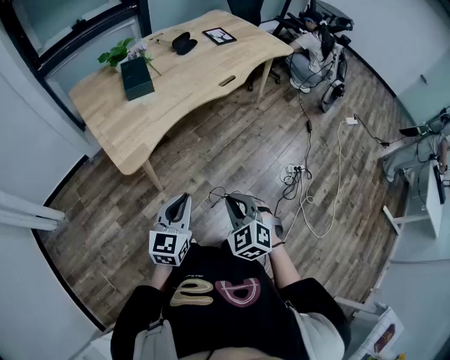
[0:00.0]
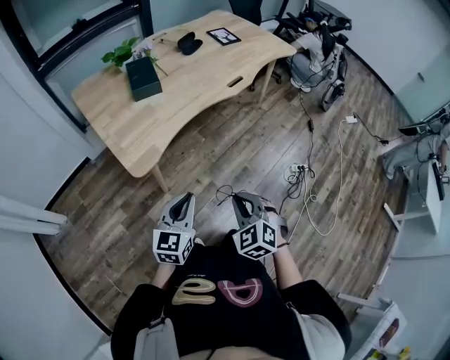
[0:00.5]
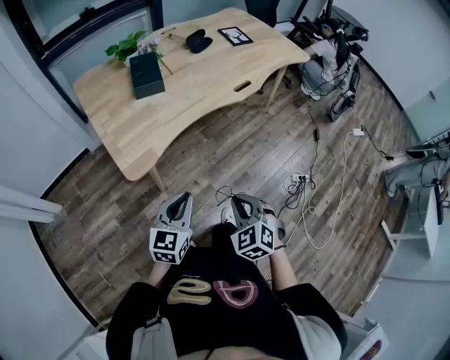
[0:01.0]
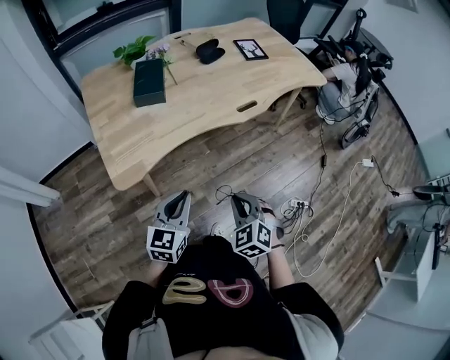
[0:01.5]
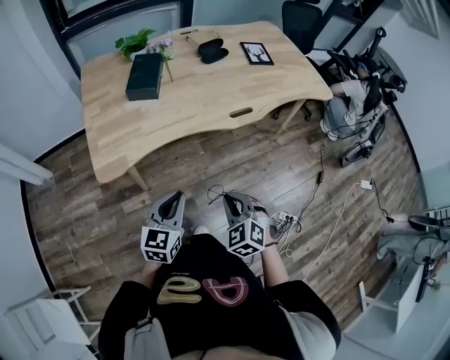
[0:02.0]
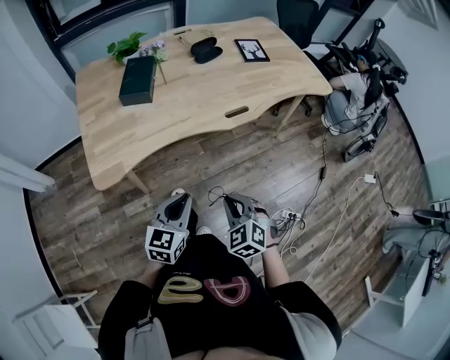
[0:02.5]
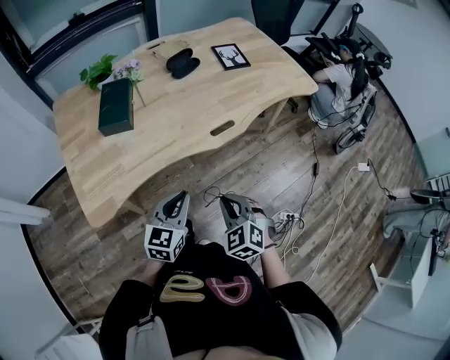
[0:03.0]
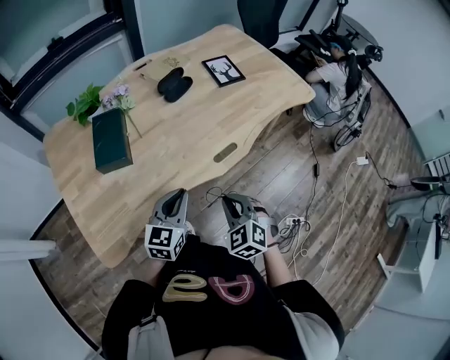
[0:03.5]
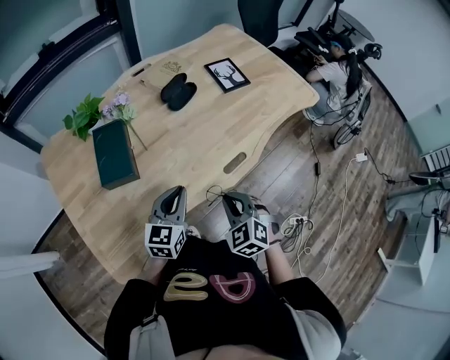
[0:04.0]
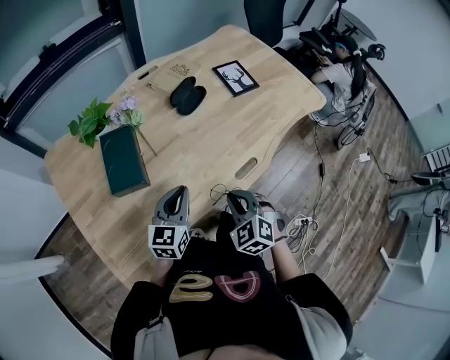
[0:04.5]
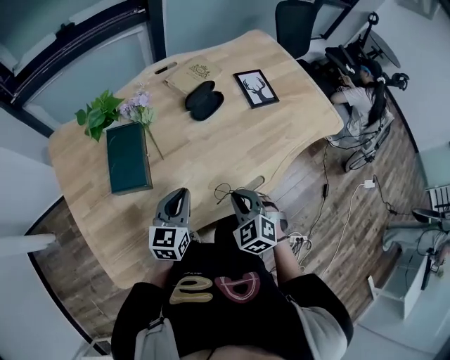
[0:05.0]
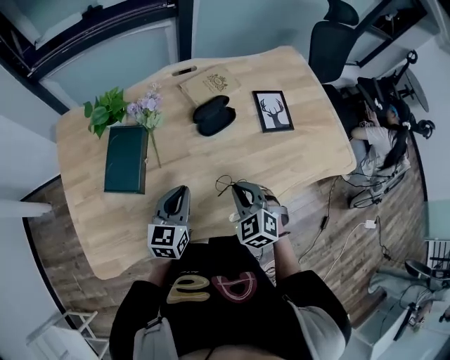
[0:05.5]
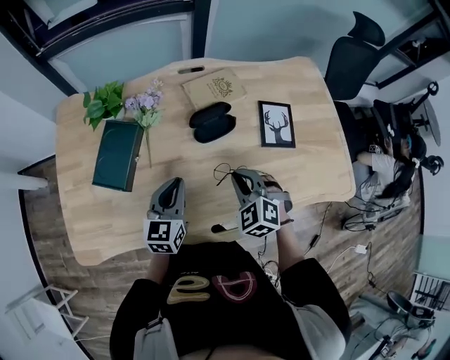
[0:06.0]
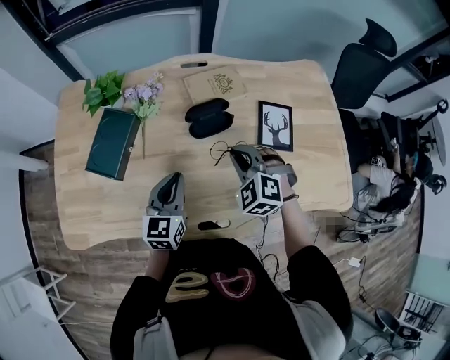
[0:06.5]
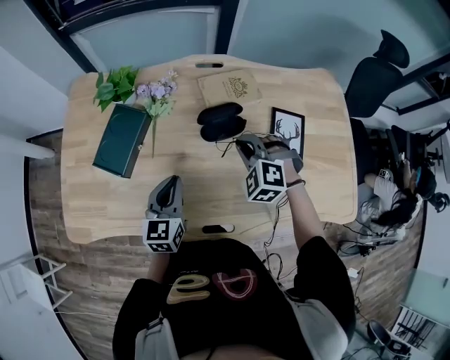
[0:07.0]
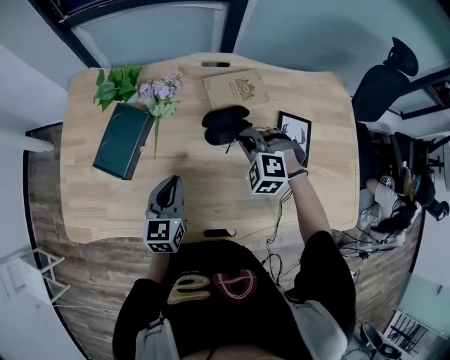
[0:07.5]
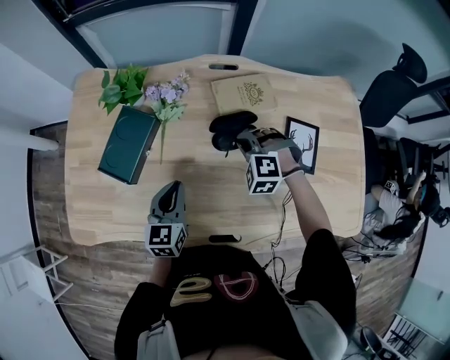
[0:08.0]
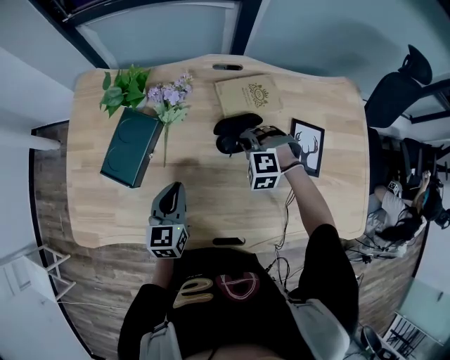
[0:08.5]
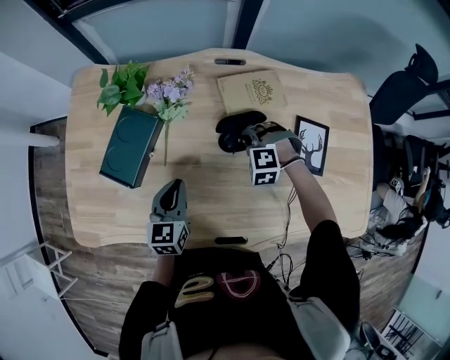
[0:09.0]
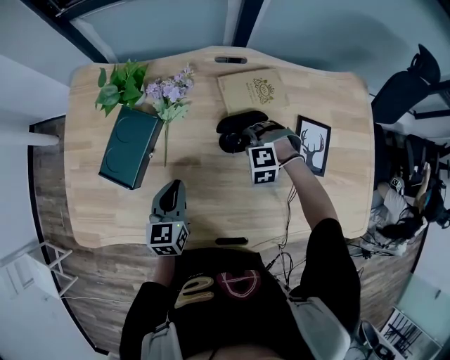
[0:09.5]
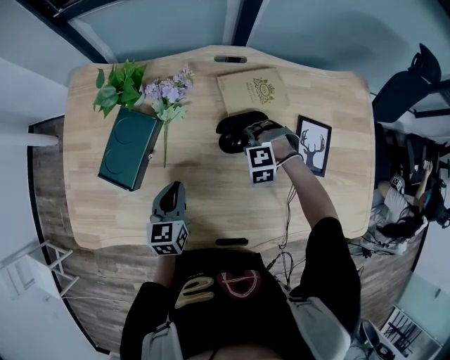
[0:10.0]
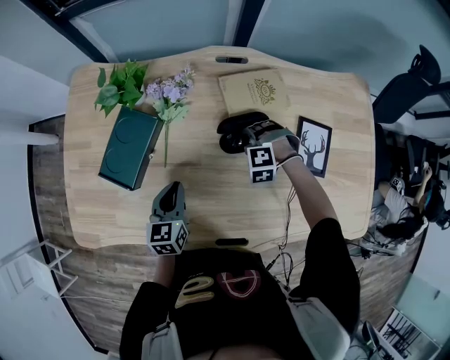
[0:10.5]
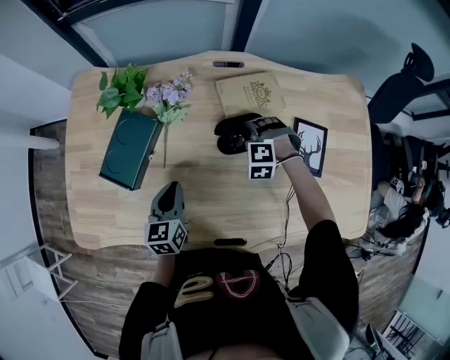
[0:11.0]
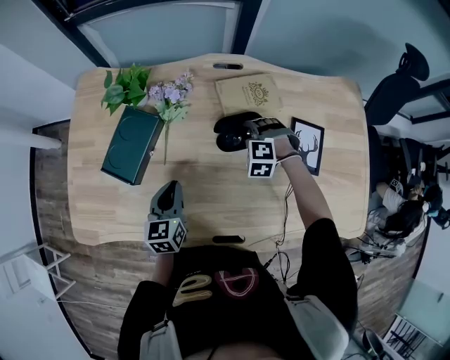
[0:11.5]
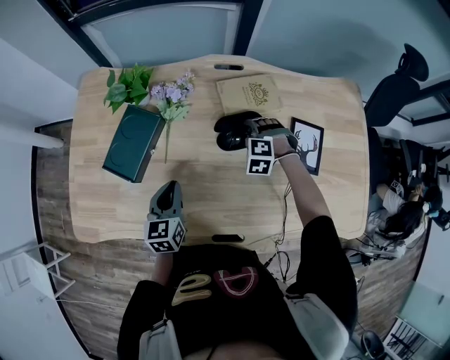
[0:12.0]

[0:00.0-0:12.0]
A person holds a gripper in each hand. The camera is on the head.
0:00.0 to 0:02.0: The two grippers go some 25 cm forward and to the right. The left gripper changes its angle by approximately 20 degrees.
0:02.0 to 0:04.0: The grippers both shift forward by roughly 30 cm.
0:04.0 to 0:06.0: The right gripper changes place by roughly 30 cm, and swivels roughly 30 degrees. The left gripper shifts by some 20 cm, and changes its angle by roughly 30 degrees.
0:06.0 to 0:08.0: The right gripper moves forward, roughly 15 cm, and swivels roughly 40 degrees.
0:08.0 to 0:10.0: The right gripper heads downward, covering about 10 cm. Meanwhile the left gripper moves downward, some 5 cm.
0:10.0 to 0:12.0: The right gripper opens.

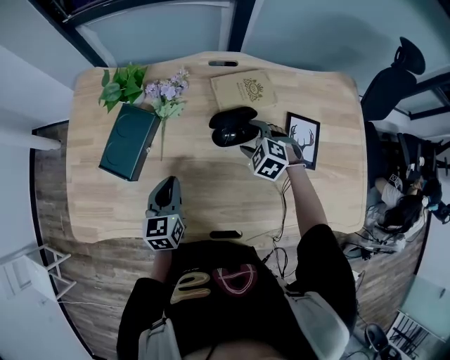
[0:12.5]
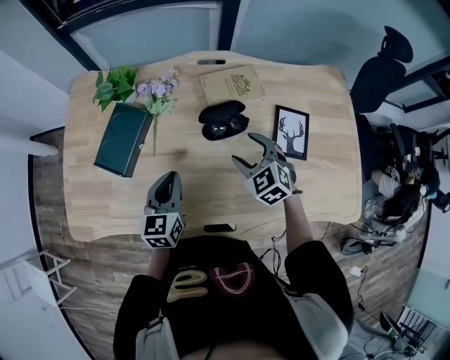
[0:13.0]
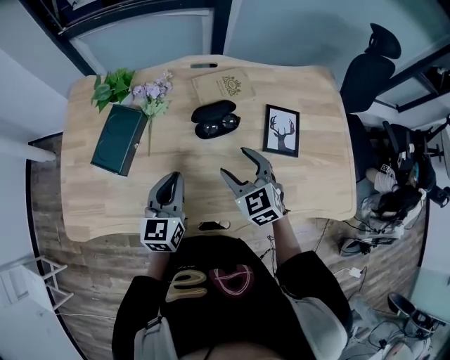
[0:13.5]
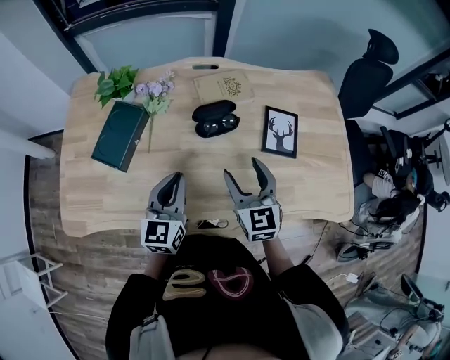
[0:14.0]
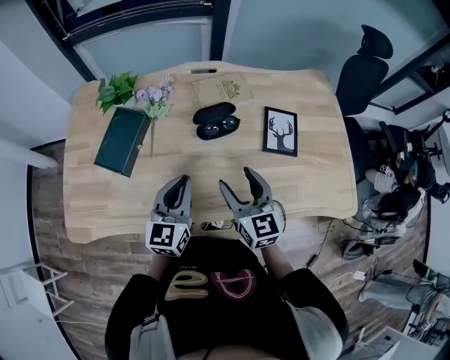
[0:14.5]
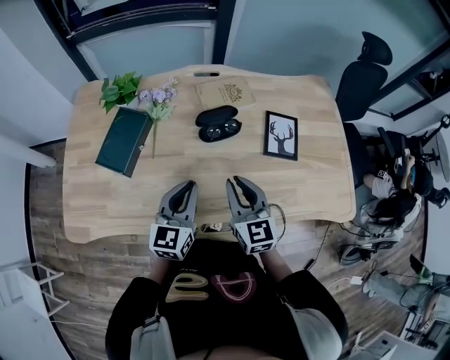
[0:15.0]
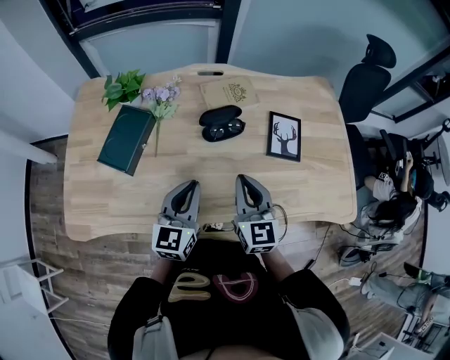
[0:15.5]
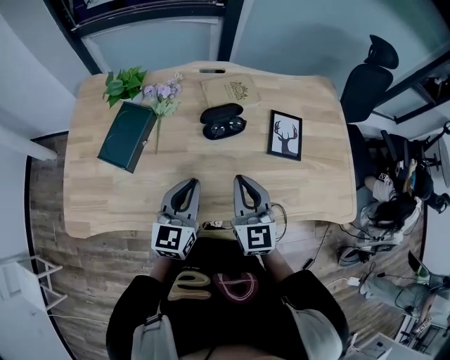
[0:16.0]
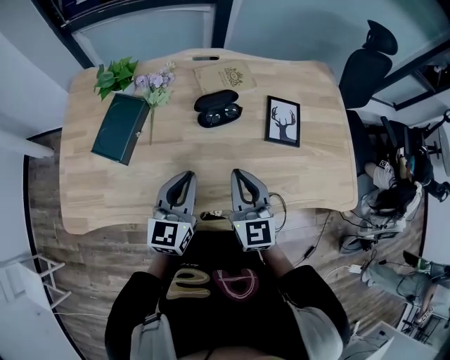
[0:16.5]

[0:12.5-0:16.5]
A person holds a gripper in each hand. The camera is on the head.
0:12.5 to 0:14.5: The left gripper travels upward, to the right and backward by about 15 cm, and turns by approximately 20 degrees. The right gripper heads backward and upward, covering roughly 25 cm, and points its fingers about 40 degrees further upward.
0:14.5 to 0:16.5: The right gripper closes up.

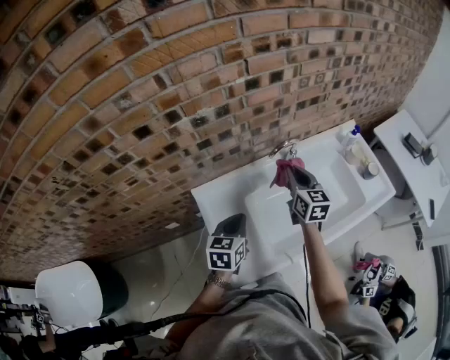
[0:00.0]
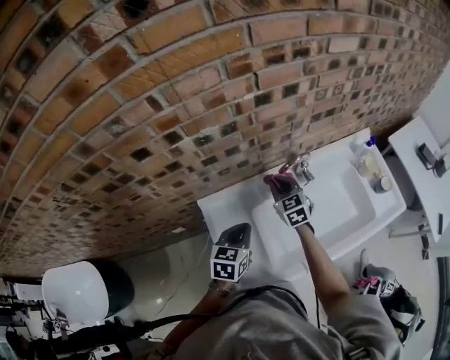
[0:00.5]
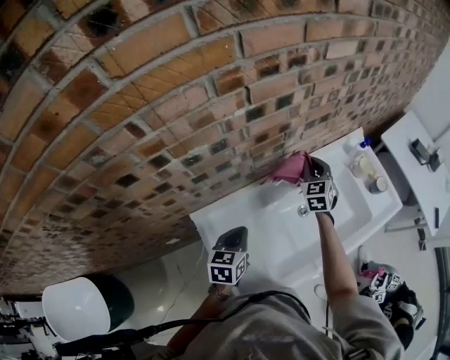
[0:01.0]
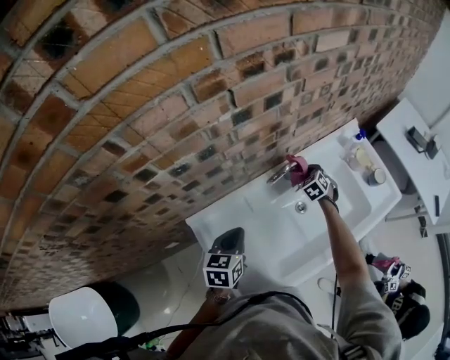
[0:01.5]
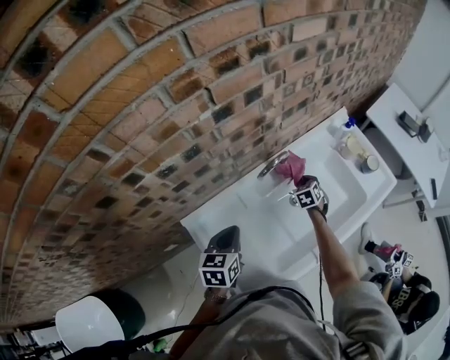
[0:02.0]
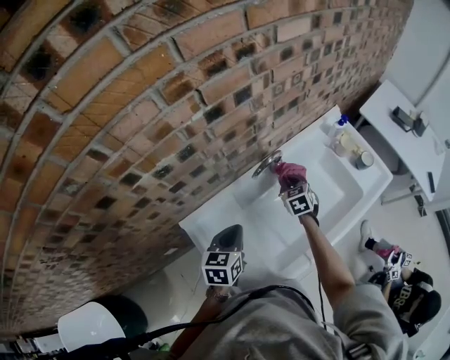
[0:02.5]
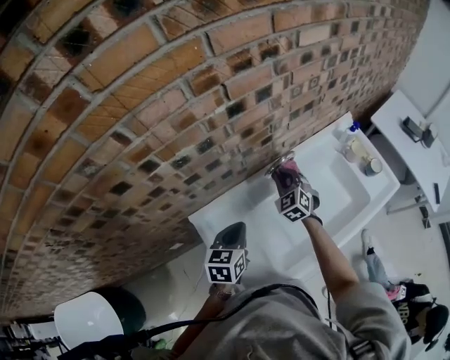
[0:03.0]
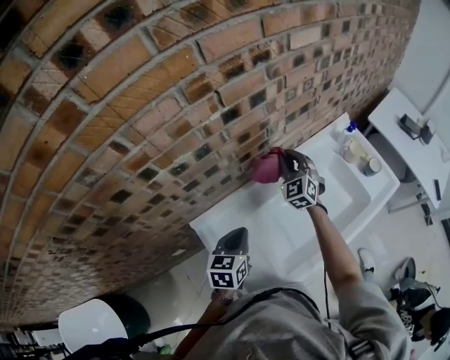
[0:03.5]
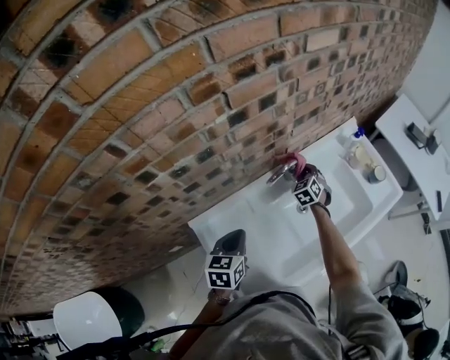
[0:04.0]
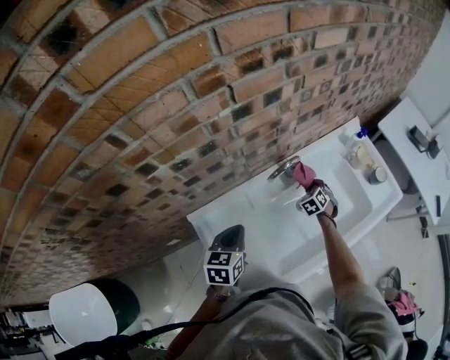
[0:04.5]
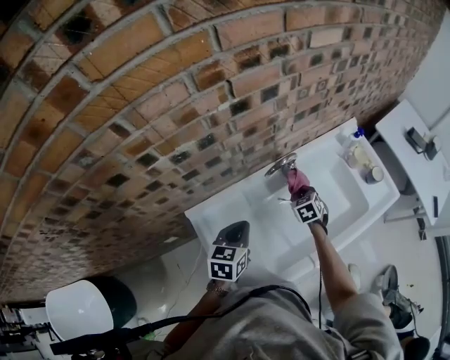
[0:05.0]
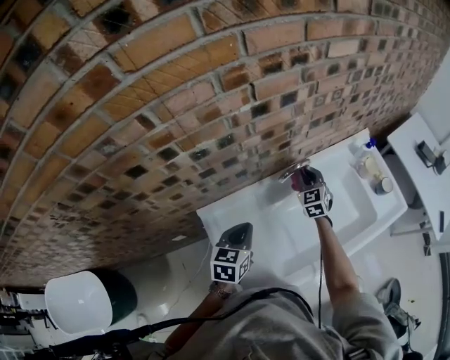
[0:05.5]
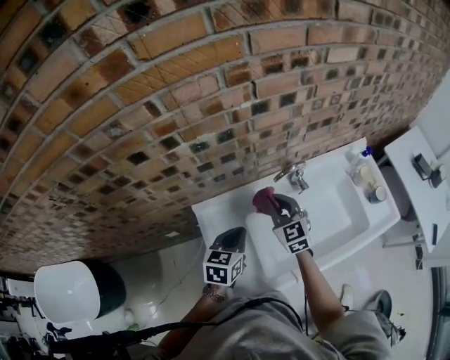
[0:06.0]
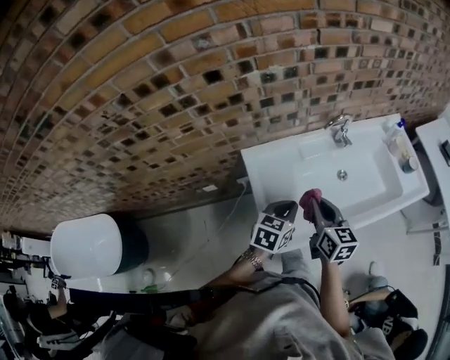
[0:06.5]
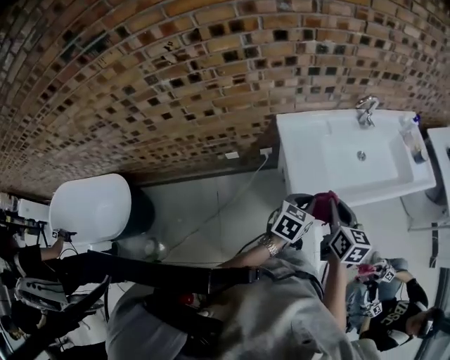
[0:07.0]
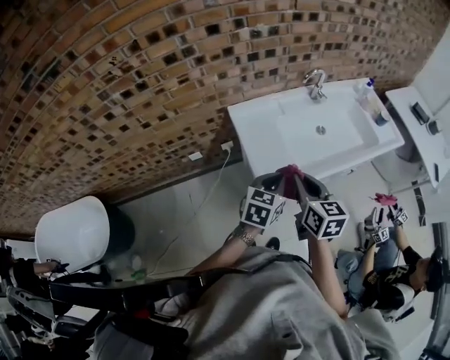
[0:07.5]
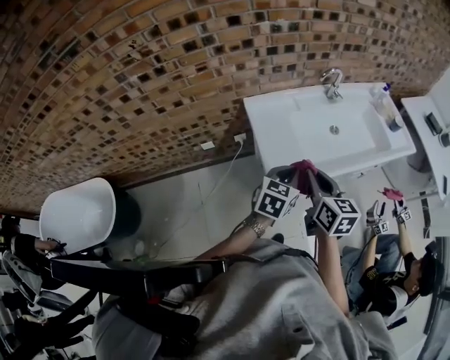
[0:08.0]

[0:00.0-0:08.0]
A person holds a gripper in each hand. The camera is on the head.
0:00.0 to 0:02.0: The left gripper heads forward, covering roughly 10 cm, while the right gripper goes about 30 cm downward, to the right and forward, and points its fingers roughly 40 degrees further downward.
0:02.0 to 0:04.0: The right gripper shifts approximately 10 cm forward and to the left, and reaches about 20 cm upward, then returns.
0:04.0 to 0:06.0: The right gripper is displaced backward, upward and to the left by roughly 30 cm, and rotates approximately 40 degrees.
0:06.0 to 0:08.0: The grippers both shift backward by some 35 cm. The right gripper rotates approximately 30 degrees.

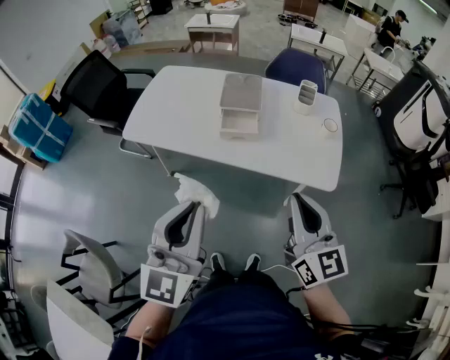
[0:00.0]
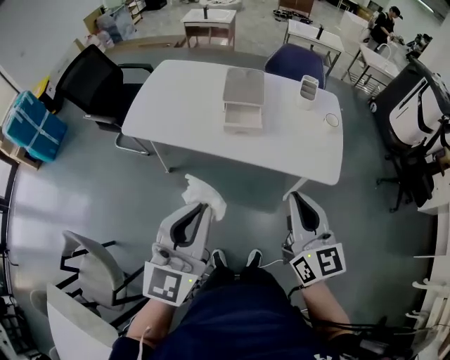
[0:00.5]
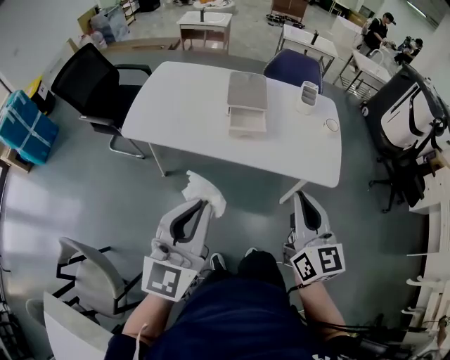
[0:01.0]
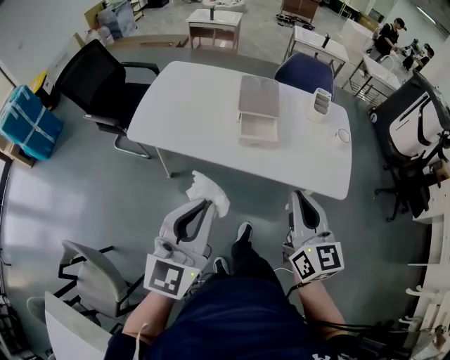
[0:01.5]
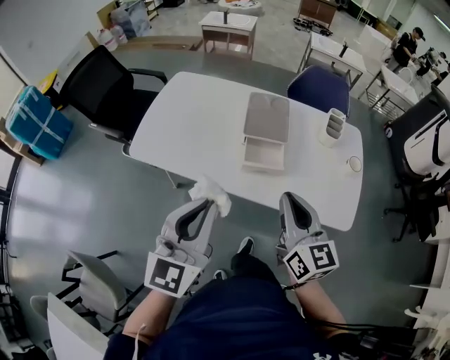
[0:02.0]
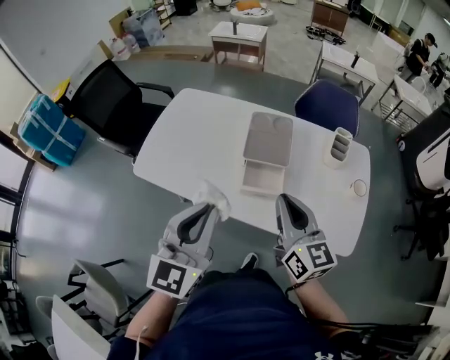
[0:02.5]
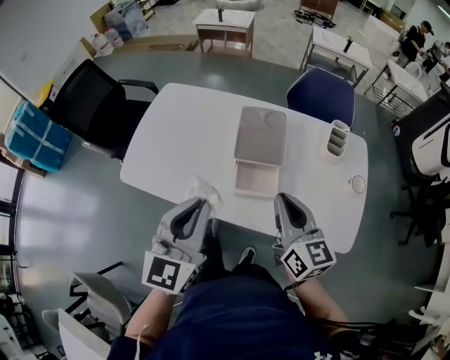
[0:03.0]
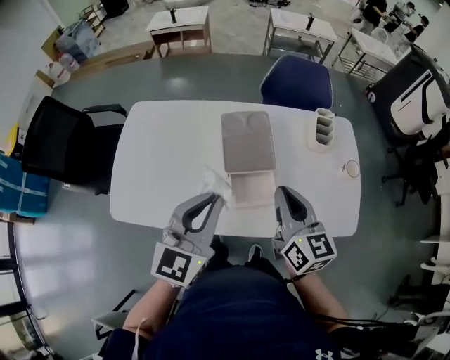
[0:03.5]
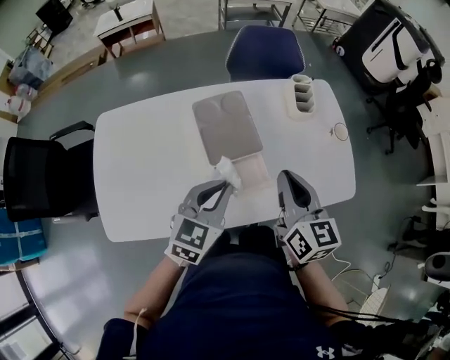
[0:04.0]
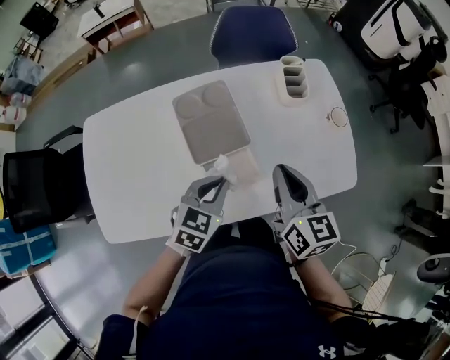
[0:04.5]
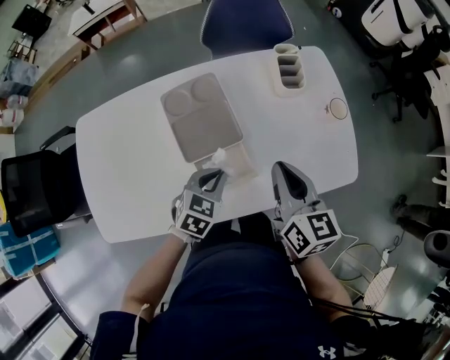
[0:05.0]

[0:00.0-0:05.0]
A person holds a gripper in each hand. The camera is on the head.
0:00.0 to 0:02.5: Both grippers travel together forward, approximately 25 cm.
0:02.5 to 0:05.0: The left gripper goes roughly 30 cm downward, and points its fingers about 40 degrees further downward, while the right gripper changes place by approximately 15 cm, and changes its angle by approximately 40 degrees.
